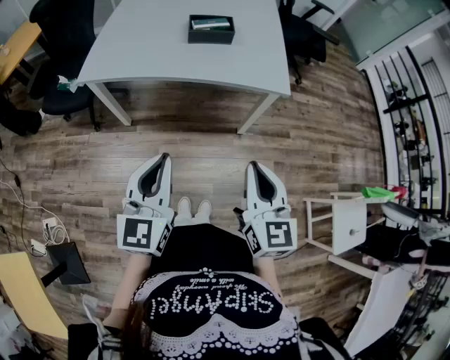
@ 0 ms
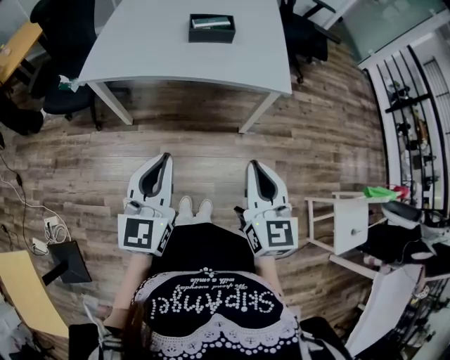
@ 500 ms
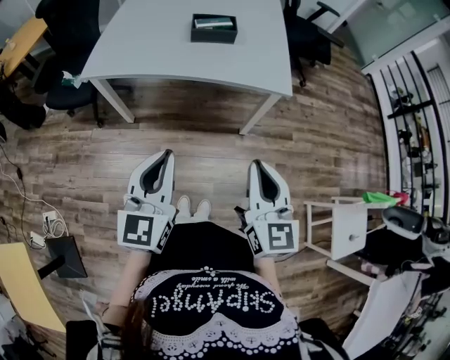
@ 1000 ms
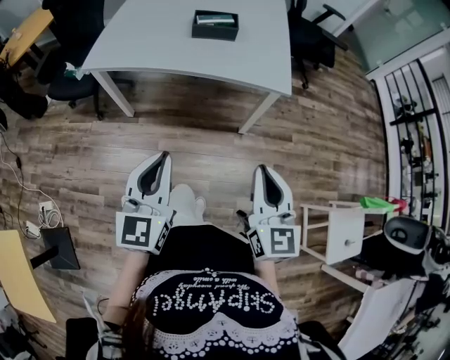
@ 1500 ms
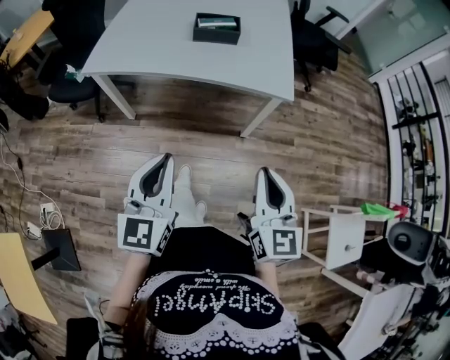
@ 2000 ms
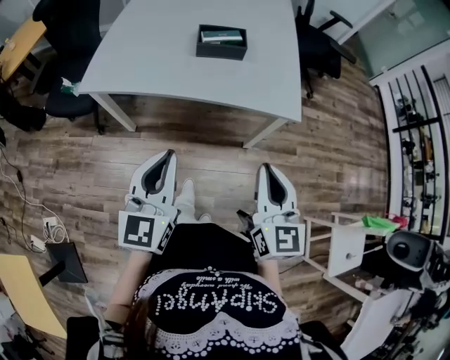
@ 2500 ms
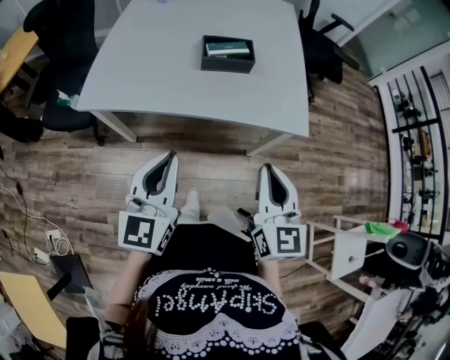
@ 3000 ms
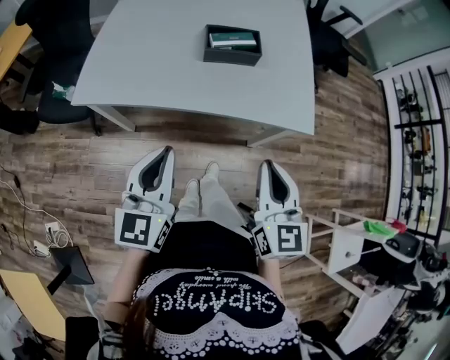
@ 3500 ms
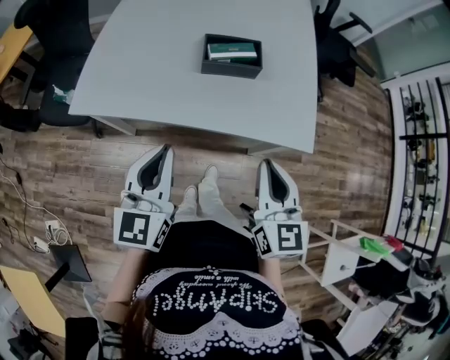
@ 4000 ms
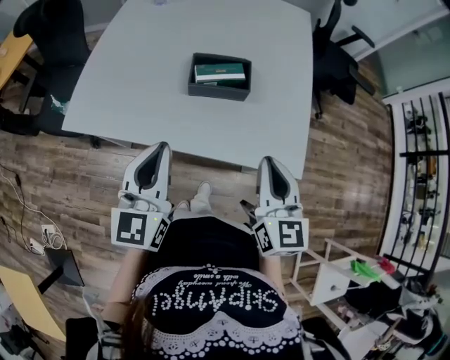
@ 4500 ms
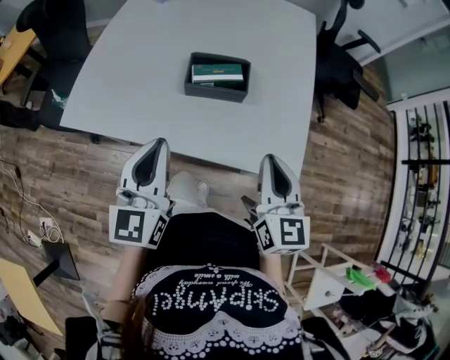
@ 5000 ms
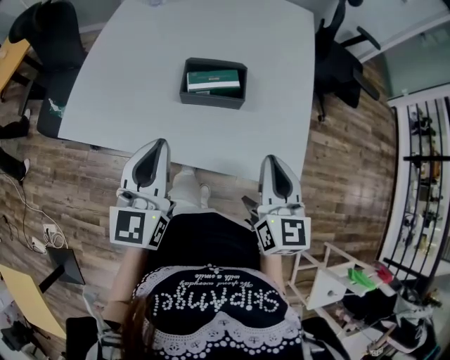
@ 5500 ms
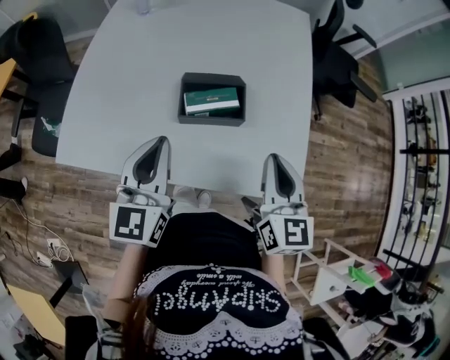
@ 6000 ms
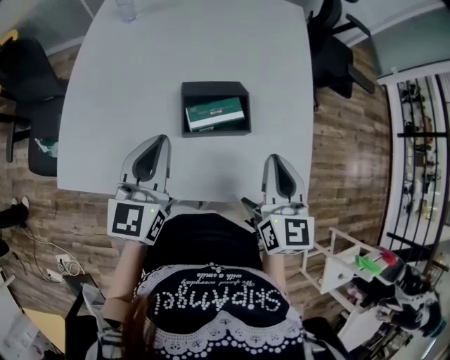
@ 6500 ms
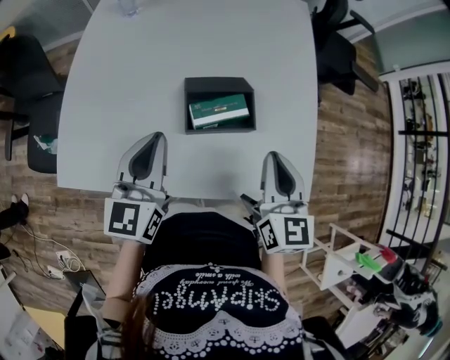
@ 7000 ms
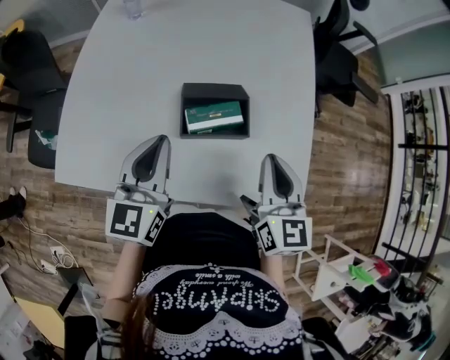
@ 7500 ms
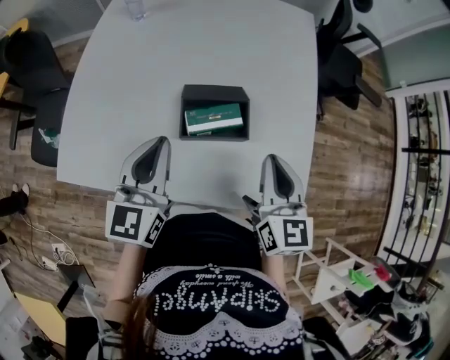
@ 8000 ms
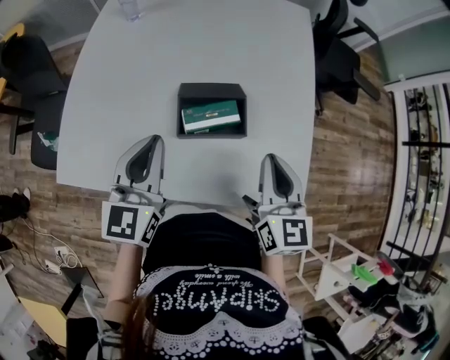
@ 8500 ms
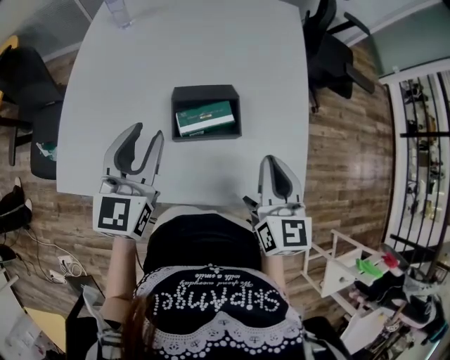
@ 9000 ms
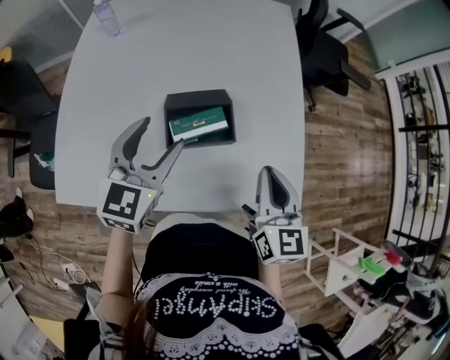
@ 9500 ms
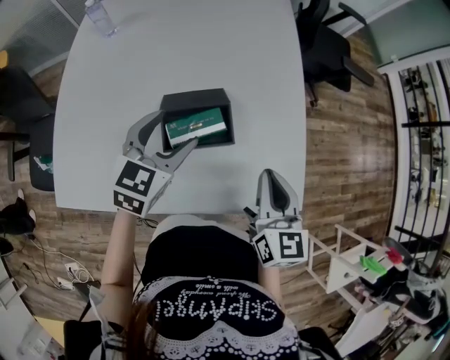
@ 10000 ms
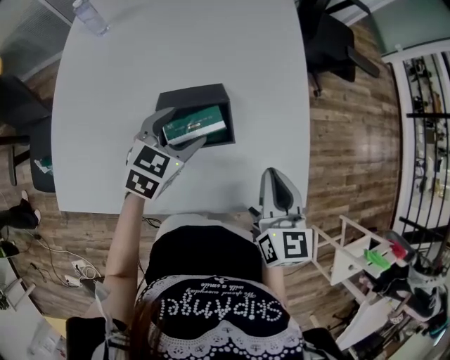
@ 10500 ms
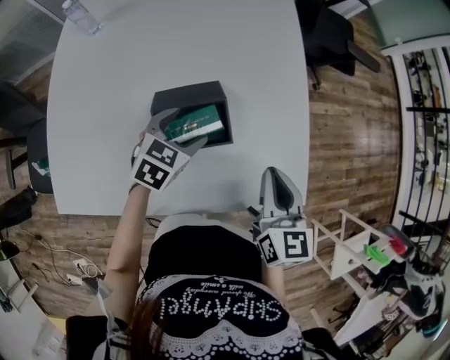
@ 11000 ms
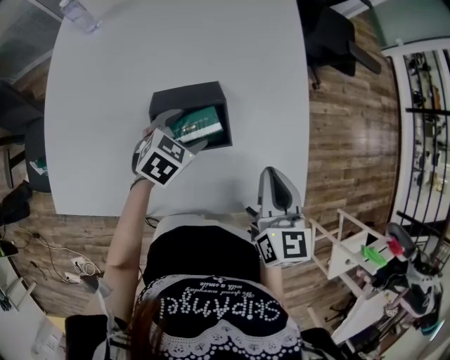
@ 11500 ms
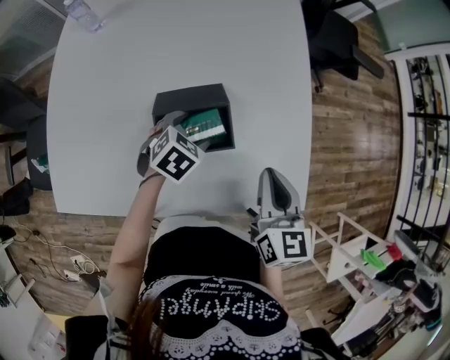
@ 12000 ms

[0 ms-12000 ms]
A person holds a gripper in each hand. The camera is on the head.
0 ms to 2000 ms: The right gripper heads to the right, covering some 5 cm.
2000 ms to 4000 ms: The two grippers go roughly 25 cm forward.
4000 ms to 6000 ms: Both grippers move forward, roughly 20 cm.
6000 ms to 8000 ms: Both grippers move forward, some 5 cm.
8000 ms to 10000 ms: The left gripper travels forward, to the right and downward by roughly 10 cm, swivels some 30 degrees, and opens.
10000 ms to 12000 ms: The left gripper heads downward, covering some 15 cm, and tilts its fingers roughly 30 degrees downward.

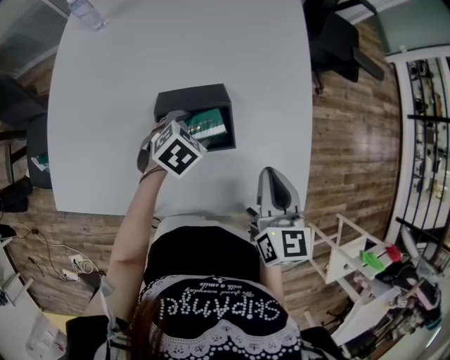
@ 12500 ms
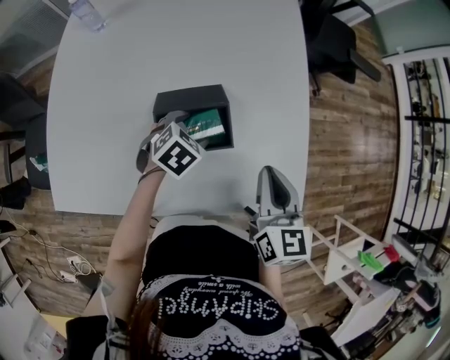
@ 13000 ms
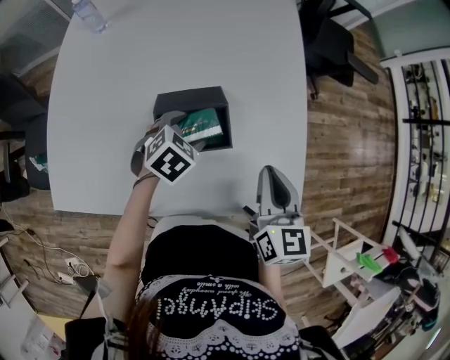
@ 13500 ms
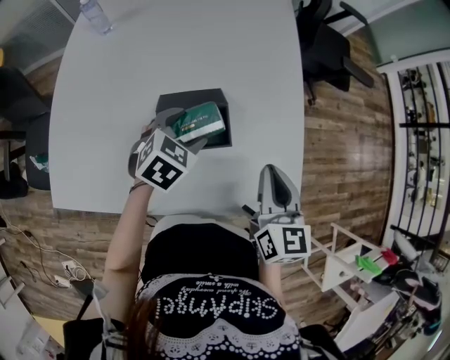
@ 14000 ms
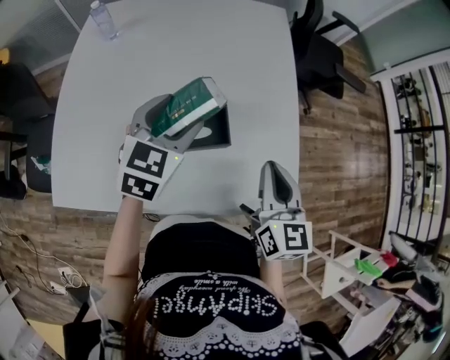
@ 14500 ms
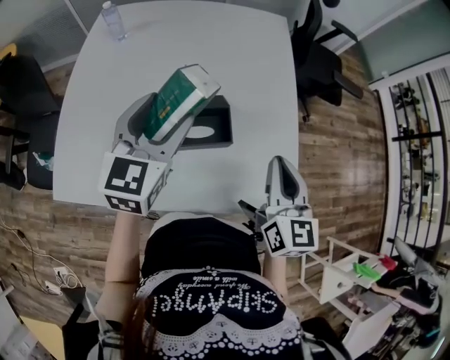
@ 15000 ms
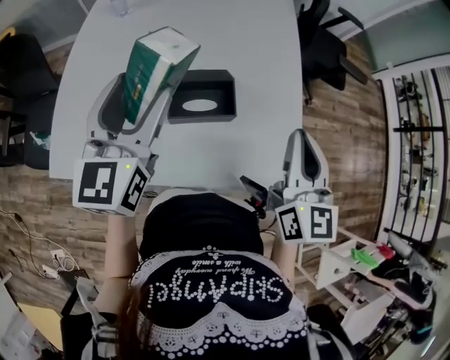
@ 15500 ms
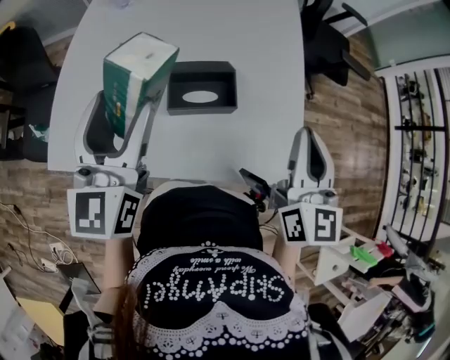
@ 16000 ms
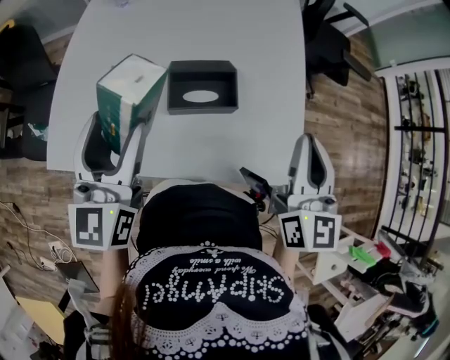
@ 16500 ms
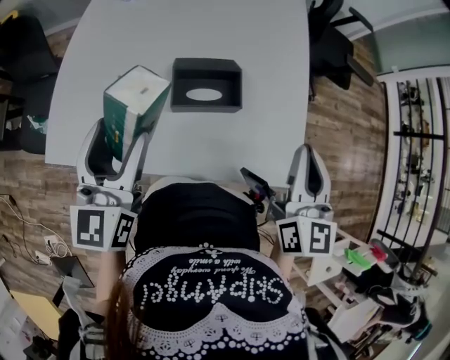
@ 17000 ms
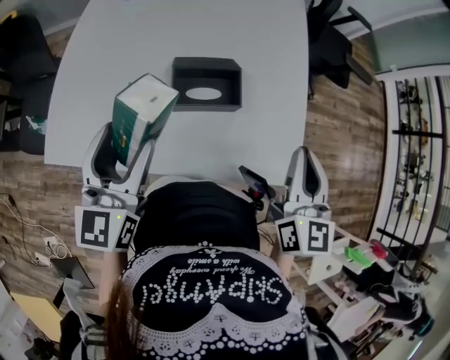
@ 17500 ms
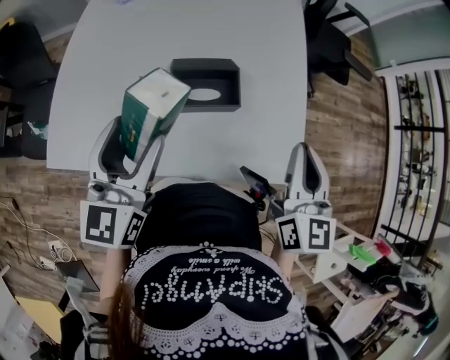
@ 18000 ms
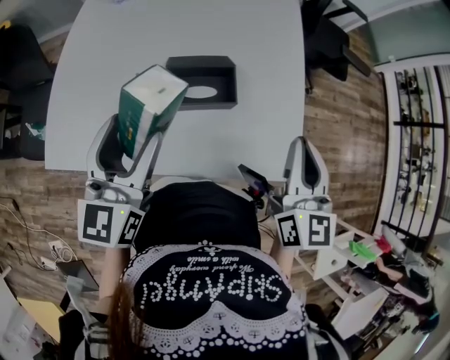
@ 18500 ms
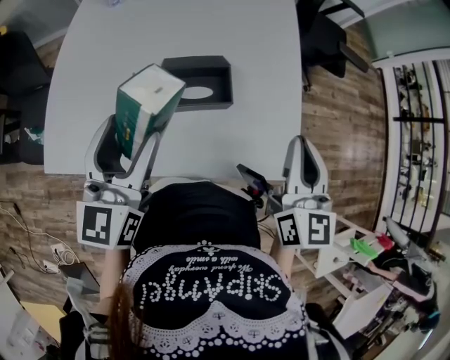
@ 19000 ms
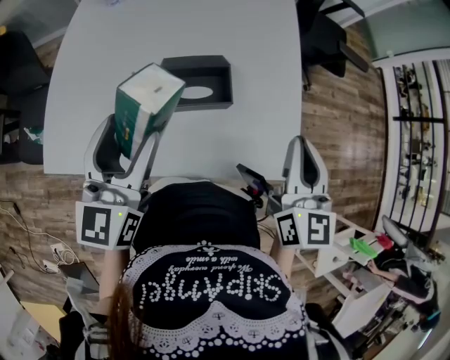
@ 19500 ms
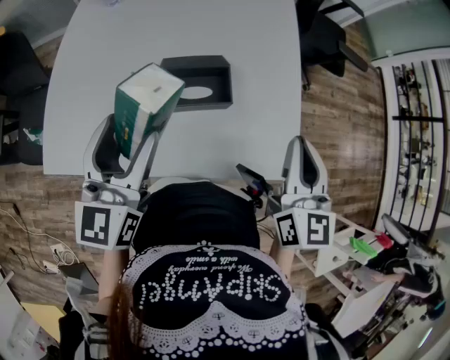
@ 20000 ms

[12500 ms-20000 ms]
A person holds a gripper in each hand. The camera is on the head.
12500 ms to 14500 ms: The right gripper is displaced upward by about 5 cm. Meanwhile the left gripper shifts approximately 20 cm upward, and angles its fingers upward, by roughly 30 degrees.
14500 ms to 16500 ms: The left gripper moves backward, to the left and upward, roughly 20 cm, and turns by roughly 40 degrees; the right gripper goes roughly 10 cm upward.
16500 ms to 18000 ms: There are only small adjustments of the grippers.
18000 ms to 20000 ms: Both grippers stay about where they are.

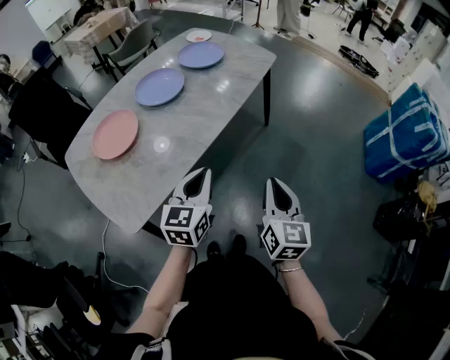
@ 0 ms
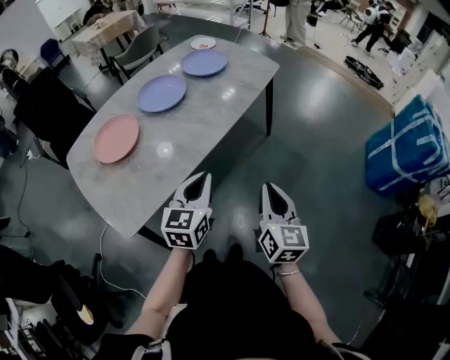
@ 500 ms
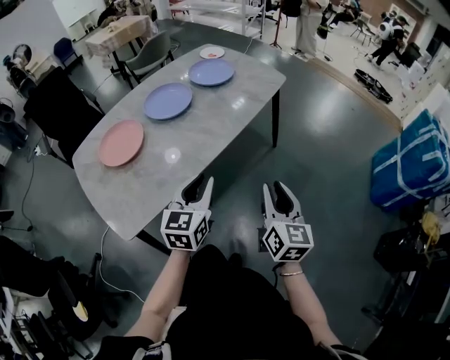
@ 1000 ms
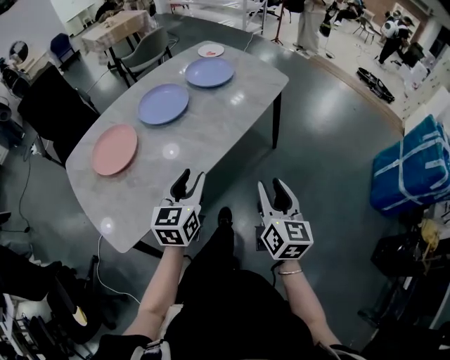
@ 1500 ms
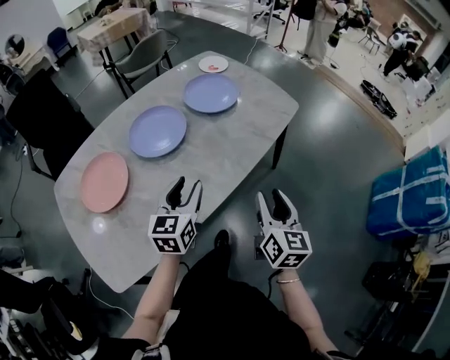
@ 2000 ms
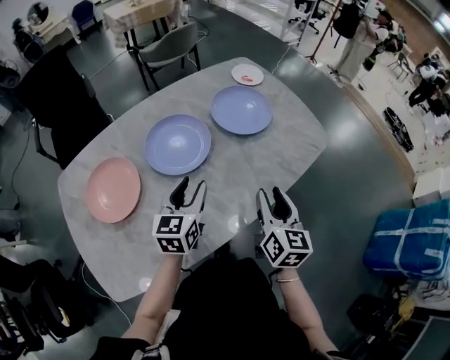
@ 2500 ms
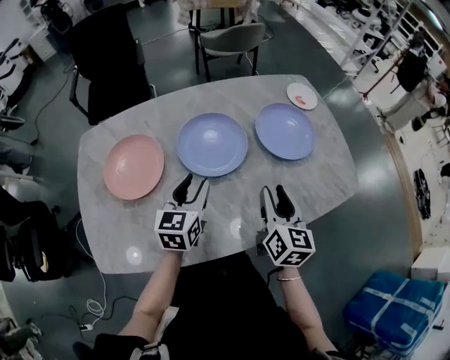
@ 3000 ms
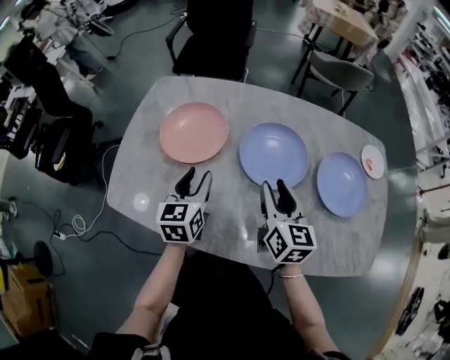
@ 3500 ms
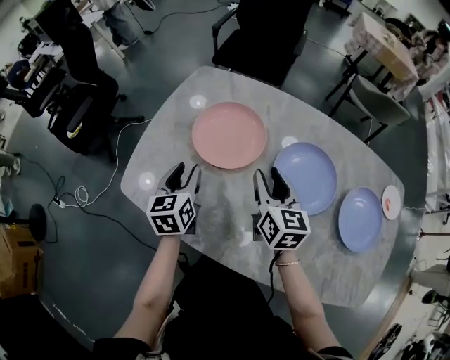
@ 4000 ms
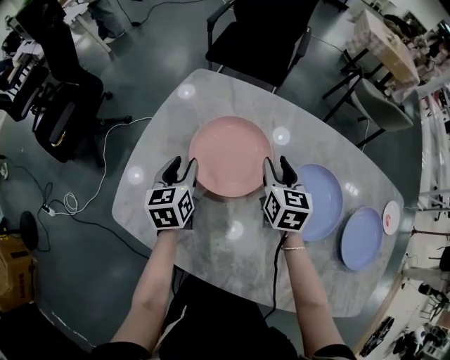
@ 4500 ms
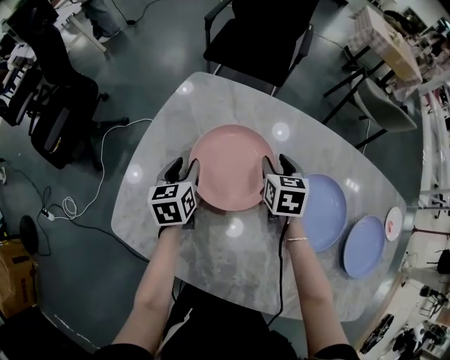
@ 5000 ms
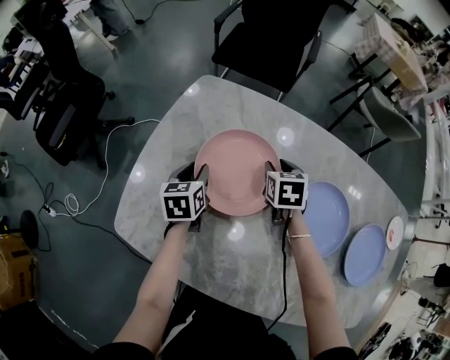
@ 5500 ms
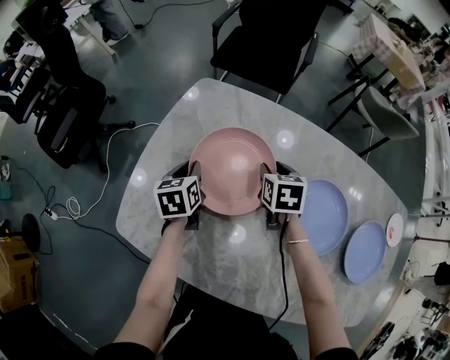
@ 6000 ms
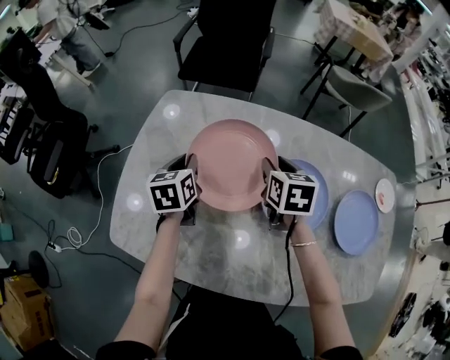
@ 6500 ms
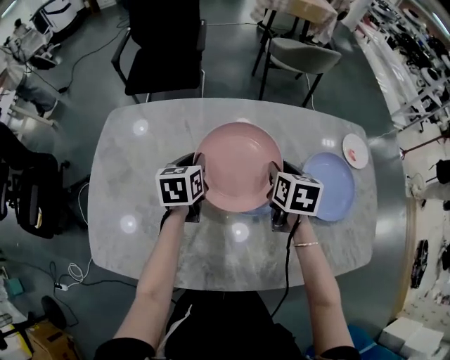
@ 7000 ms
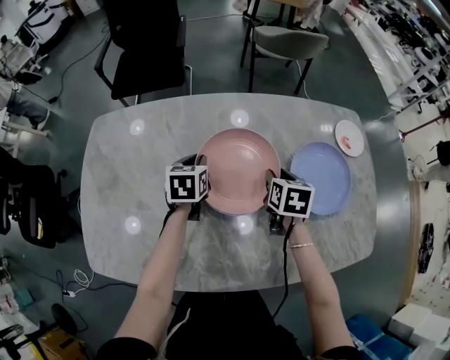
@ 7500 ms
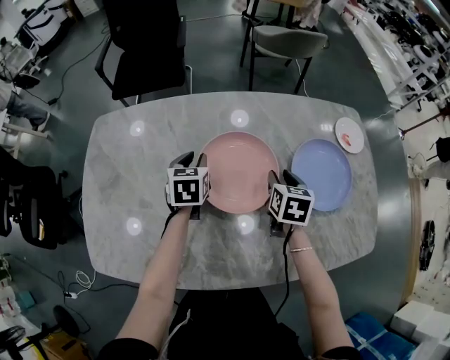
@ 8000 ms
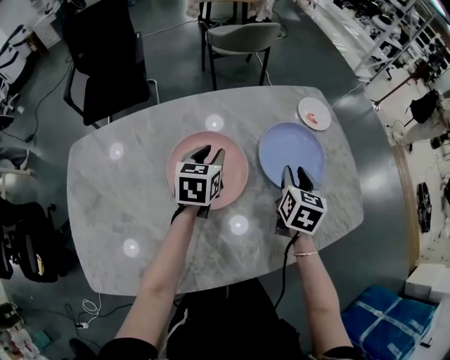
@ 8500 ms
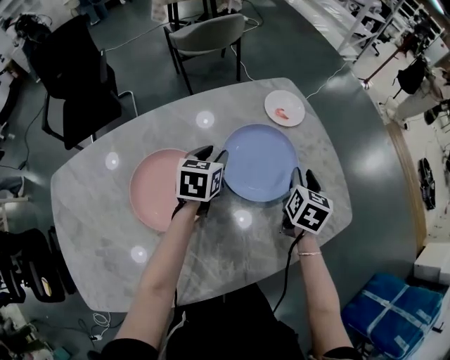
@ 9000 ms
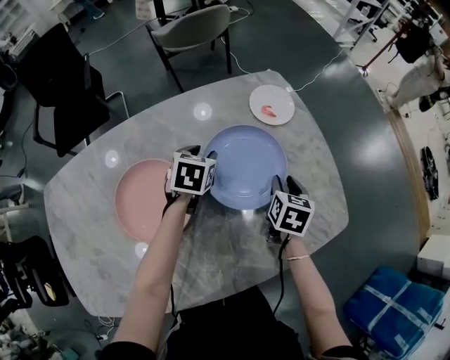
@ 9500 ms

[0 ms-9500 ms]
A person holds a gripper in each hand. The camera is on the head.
0 ms to 2000 ms: The grippers both shift forward by some 25 cm. The right gripper opens its fingers. The left gripper opens its fingers.
2000 ms to 4000 ms: The left gripper ends up some 30 cm from where it was, and turns by about 80 degrees. Meanwhile the right gripper shifts by approximately 40 cm, and turns by roughly 80 degrees.
4000 ms to 5500 ms: The grippers both shift forward and downward by roughly 20 cm. The right gripper tilts its fingers approximately 30 degrees downward.
5500 ms to 7500 ms: The right gripper reaches about 10 cm upward, then returns, and turns by some 40 degrees. The left gripper shifts by roughly 30 cm, and turns by about 30 degrees.
7500 ms to 9500 ms: The right gripper goes upward and returns, about 5 cm each way, and changes its angle by roughly 30 degrees, while the left gripper ends up about 30 cm from where it was, turns by about 30 degrees, and opens up.
